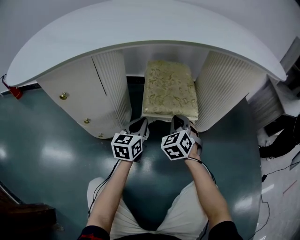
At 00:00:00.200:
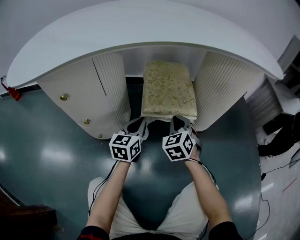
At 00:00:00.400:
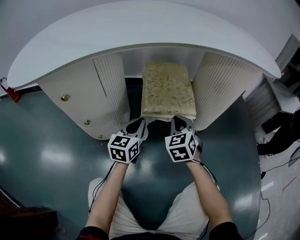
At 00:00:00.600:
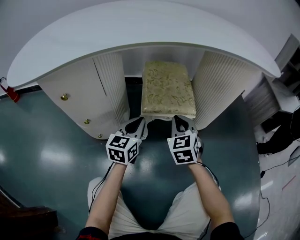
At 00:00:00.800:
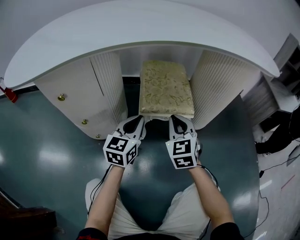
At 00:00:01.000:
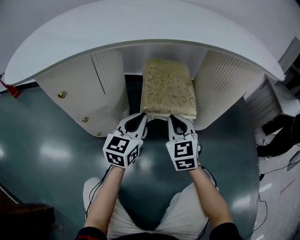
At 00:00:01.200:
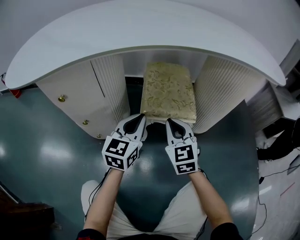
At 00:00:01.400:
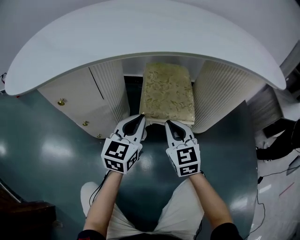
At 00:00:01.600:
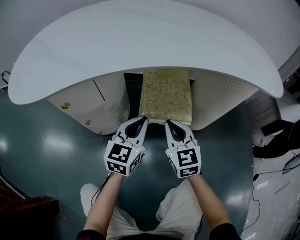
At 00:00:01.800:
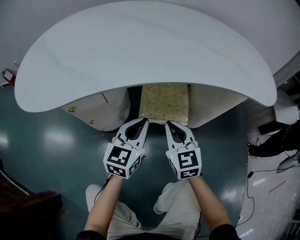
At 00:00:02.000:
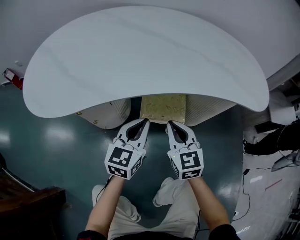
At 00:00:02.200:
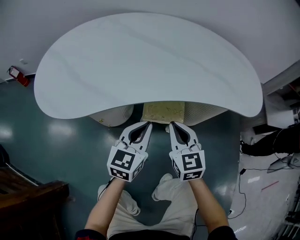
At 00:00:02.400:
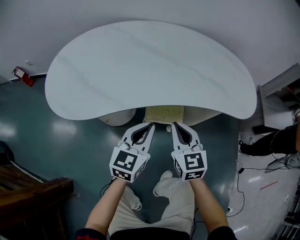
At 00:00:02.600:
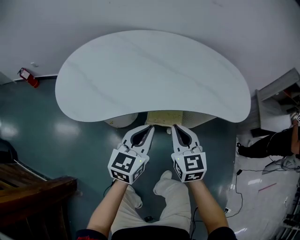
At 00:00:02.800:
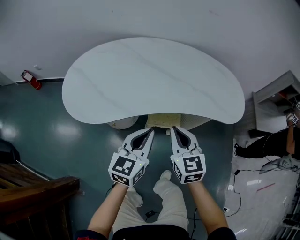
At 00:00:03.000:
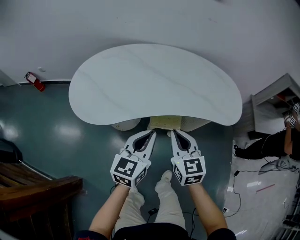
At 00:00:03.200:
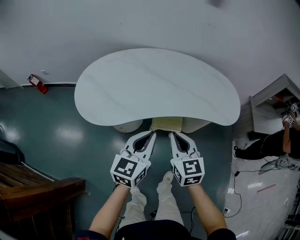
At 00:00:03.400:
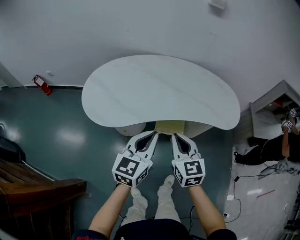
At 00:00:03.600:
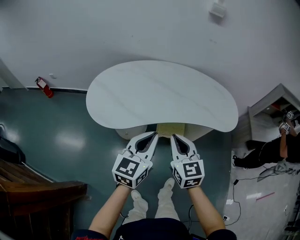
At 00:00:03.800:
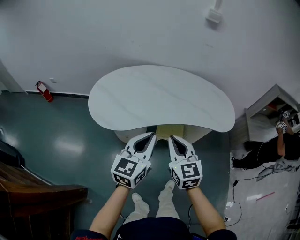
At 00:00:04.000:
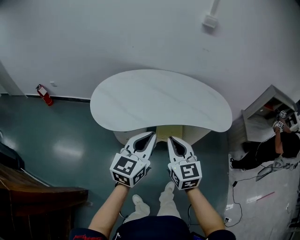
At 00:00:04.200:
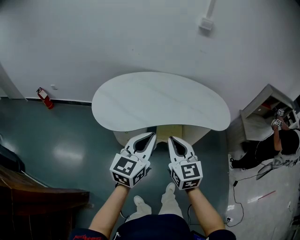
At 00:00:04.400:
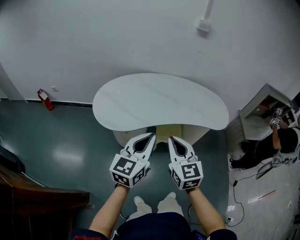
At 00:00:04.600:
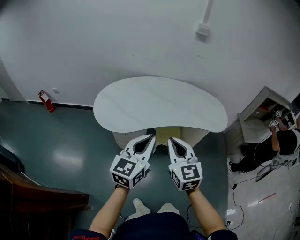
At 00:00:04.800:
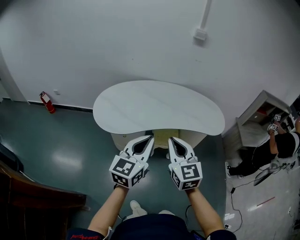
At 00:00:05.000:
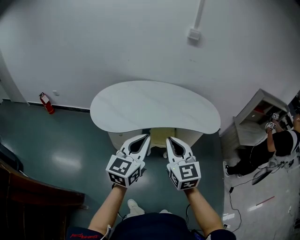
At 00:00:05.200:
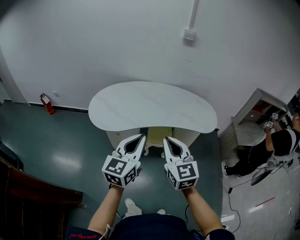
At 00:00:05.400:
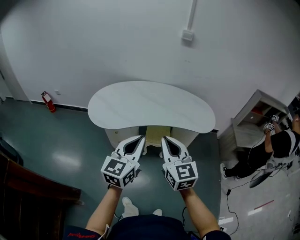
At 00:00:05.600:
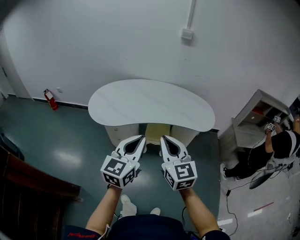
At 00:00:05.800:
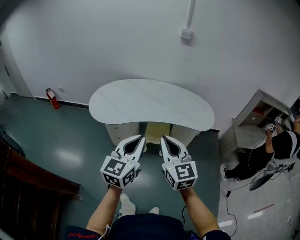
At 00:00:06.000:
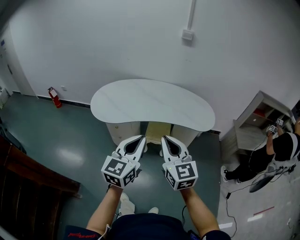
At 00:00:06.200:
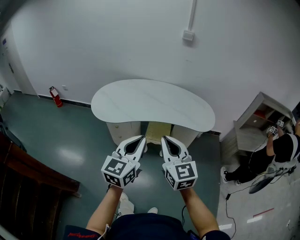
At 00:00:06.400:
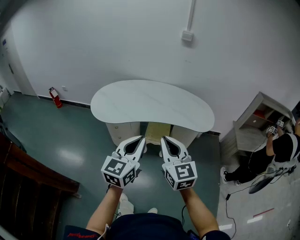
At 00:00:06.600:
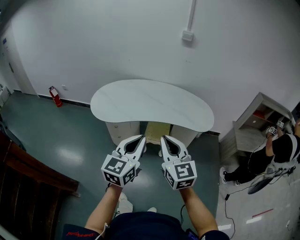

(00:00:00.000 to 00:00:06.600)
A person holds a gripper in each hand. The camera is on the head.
00:00:00.000 - 00:00:01.600: The grippers both shift upward by approximately 15 cm. The right gripper turns by some 40 degrees.
00:00:01.600 - 00:00:03.200: The two grippers go about 40 cm upward.
00:00:03.200 - 00:00:05.000: The left gripper shifts approximately 20 cm backward and upward. Meanwhile the right gripper travels upward and backward by roughly 25 cm.
00:00:05.000 - 00:00:06.600: Both grippers move to the right and backward, about 15 cm.

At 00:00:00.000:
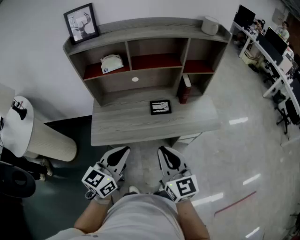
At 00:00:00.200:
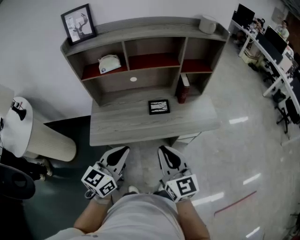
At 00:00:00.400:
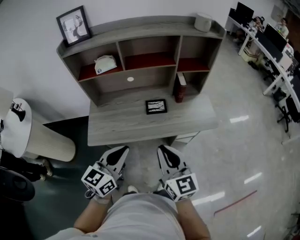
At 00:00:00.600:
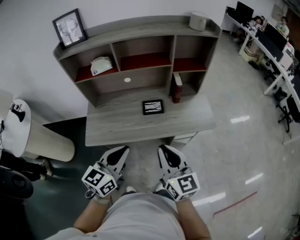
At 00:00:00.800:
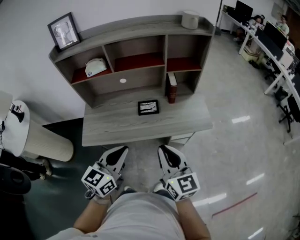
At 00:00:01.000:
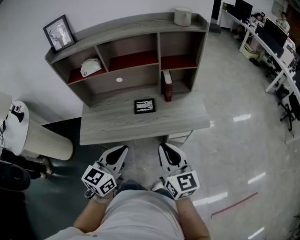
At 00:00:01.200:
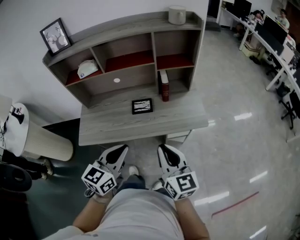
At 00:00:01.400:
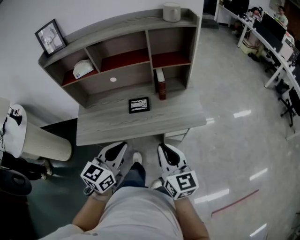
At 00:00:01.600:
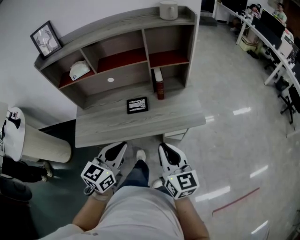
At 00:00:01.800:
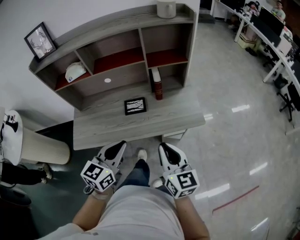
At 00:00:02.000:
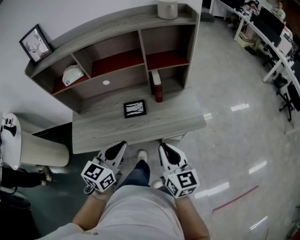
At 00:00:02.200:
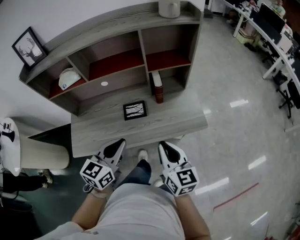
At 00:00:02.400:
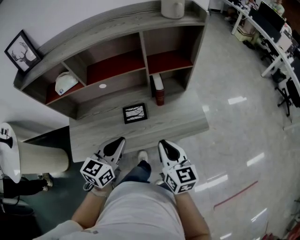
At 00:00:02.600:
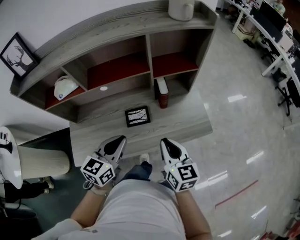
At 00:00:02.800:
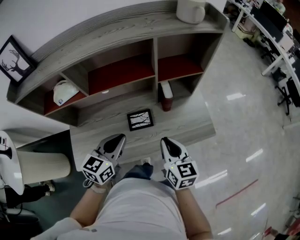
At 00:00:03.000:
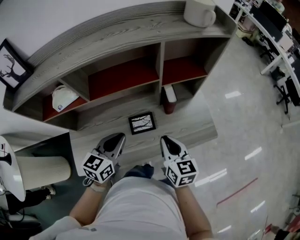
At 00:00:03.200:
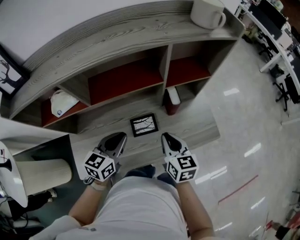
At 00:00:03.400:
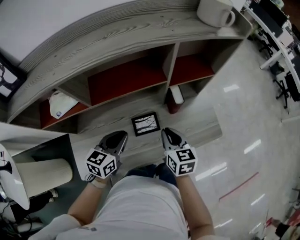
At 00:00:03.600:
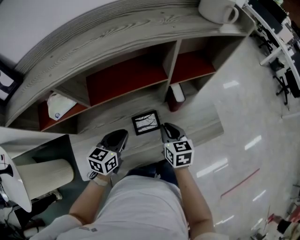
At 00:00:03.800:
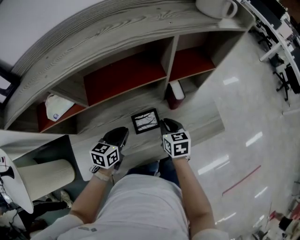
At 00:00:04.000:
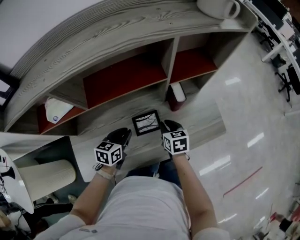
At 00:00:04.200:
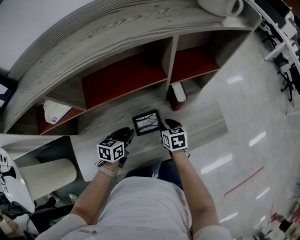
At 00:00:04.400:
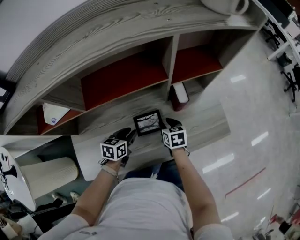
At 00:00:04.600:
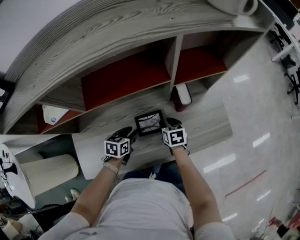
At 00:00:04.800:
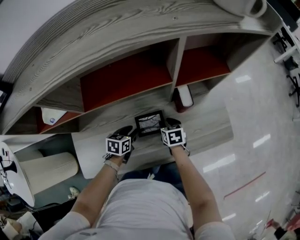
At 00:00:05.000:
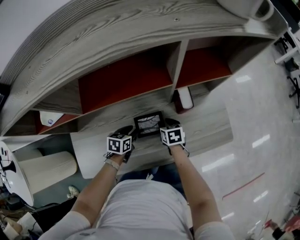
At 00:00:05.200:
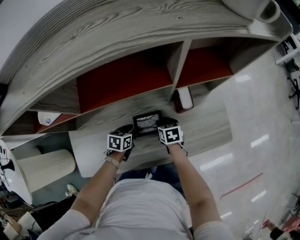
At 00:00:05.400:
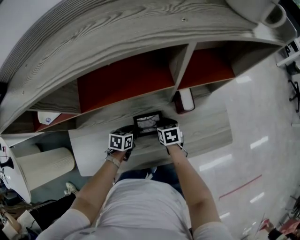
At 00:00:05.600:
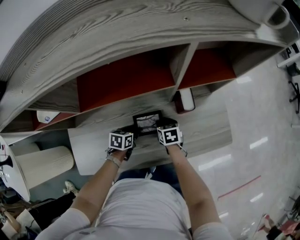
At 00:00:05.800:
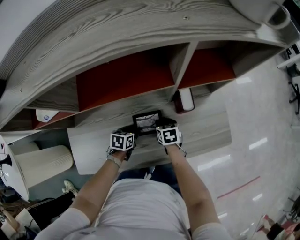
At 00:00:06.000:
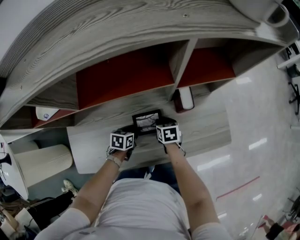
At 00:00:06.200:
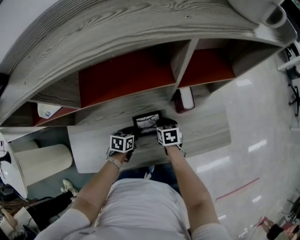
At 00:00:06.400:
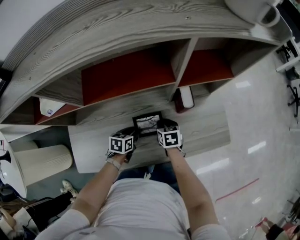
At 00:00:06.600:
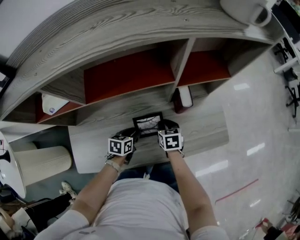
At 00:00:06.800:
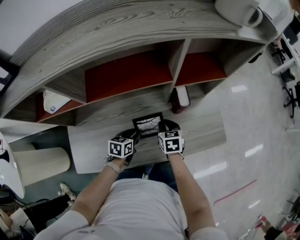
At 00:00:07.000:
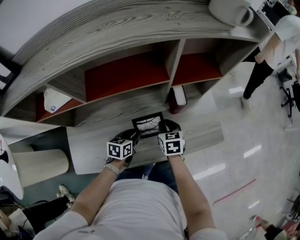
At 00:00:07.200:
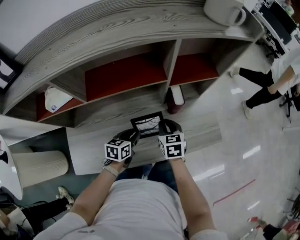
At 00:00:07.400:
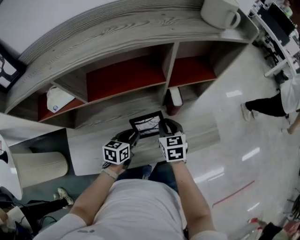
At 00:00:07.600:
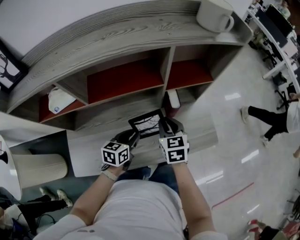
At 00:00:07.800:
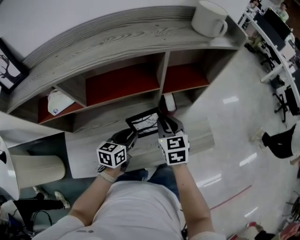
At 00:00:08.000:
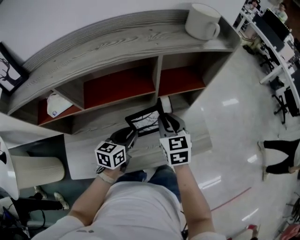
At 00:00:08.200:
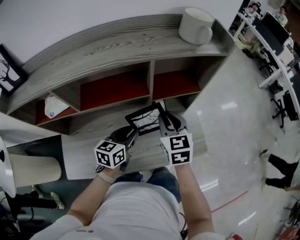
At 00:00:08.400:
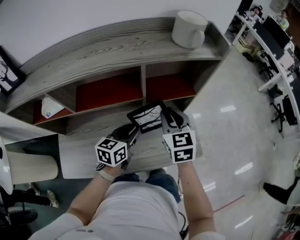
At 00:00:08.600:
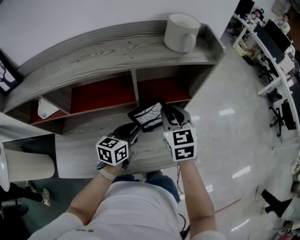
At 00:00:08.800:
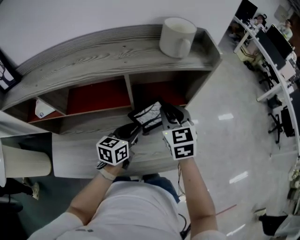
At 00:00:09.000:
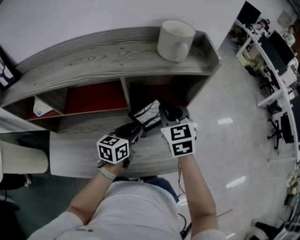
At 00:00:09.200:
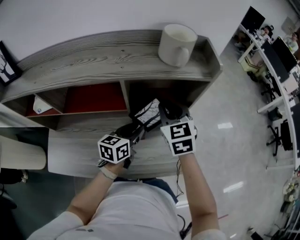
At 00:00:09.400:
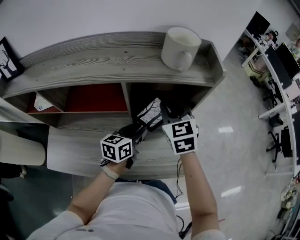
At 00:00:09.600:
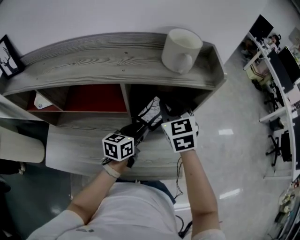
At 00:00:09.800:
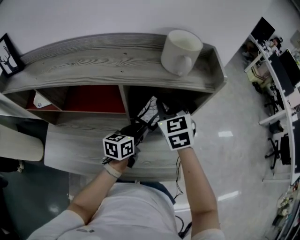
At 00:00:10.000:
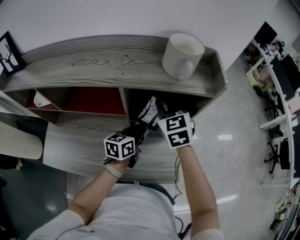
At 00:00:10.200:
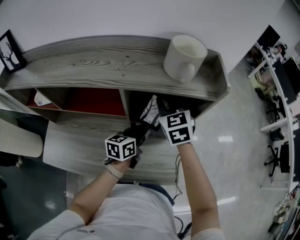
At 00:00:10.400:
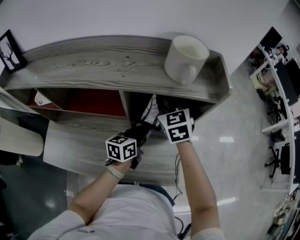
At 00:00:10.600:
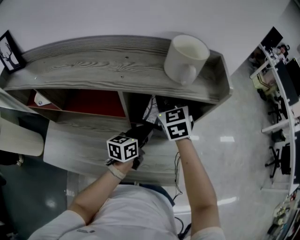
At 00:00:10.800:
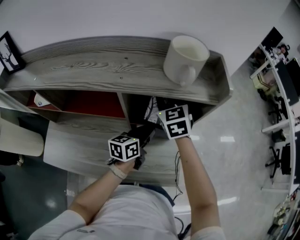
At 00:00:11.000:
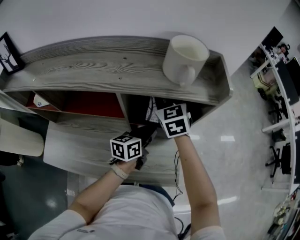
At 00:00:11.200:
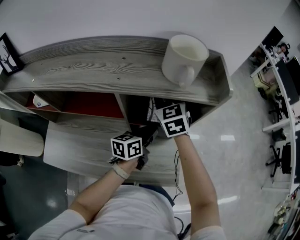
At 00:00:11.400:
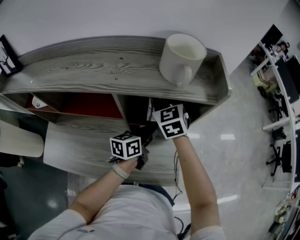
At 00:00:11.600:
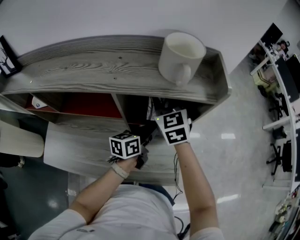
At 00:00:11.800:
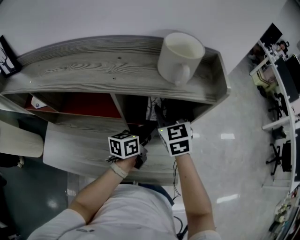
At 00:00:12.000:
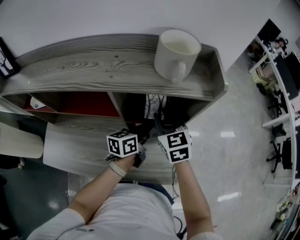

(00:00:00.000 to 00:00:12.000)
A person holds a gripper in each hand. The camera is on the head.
00:00:00.000 - 00:00:01.600: Both grippers travel together to the right, approximately 20 cm.
00:00:01.600 - 00:00:03.000: The two grippers go some 25 cm forward and to the left.
00:00:03.000 - 00:00:04.400: The left gripper travels downward by approximately 20 cm, changes its angle by some 30 degrees, and opens. Meanwhile the right gripper heads downward and forward, covering roughly 25 cm, turns by about 30 degrees, and opens its fingers.
00:00:04.400 - 00:00:06.000: The right gripper shifts some 5 cm downward; the left gripper goes approximately 10 cm downward.
00:00:06.000 - 00:00:07.600: Both grippers move upward, approximately 20 cm. The left gripper changes its angle by approximately 20 degrees. The right gripper rotates roughly 30 degrees.
00:00:07.600 - 00:00:09.000: The right gripper heads upward, forward and to the right, covering approximately 25 cm, and changes its angle by approximately 20 degrees. The left gripper is displaced to the right, forward and upward by approximately 25 cm.
00:00:09.000 - 00:00:10.400: The left gripper moves forward, about 5 cm, while the right gripper is displaced forward by some 10 cm.
00:00:10.400 - 00:00:12.000: The right gripper heads backward, covering about 5 cm.

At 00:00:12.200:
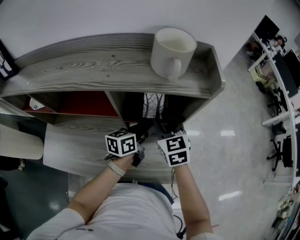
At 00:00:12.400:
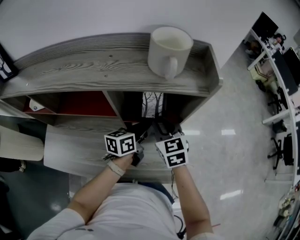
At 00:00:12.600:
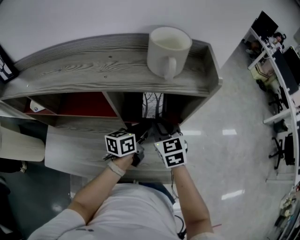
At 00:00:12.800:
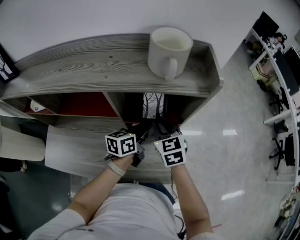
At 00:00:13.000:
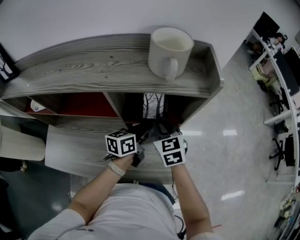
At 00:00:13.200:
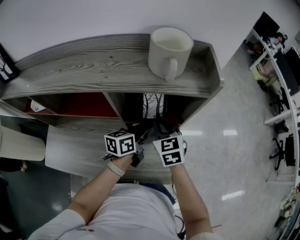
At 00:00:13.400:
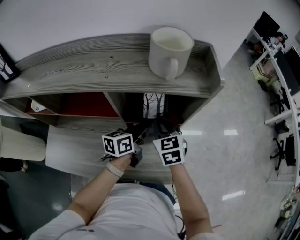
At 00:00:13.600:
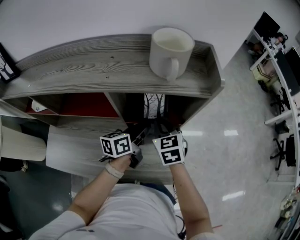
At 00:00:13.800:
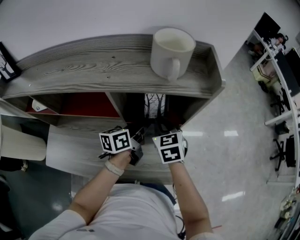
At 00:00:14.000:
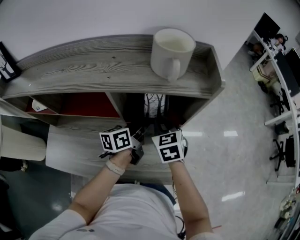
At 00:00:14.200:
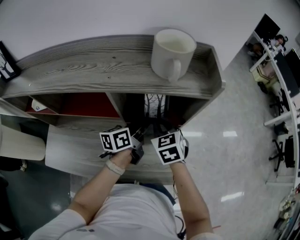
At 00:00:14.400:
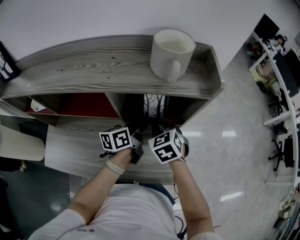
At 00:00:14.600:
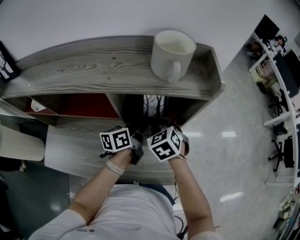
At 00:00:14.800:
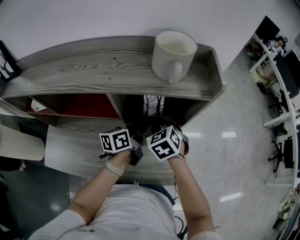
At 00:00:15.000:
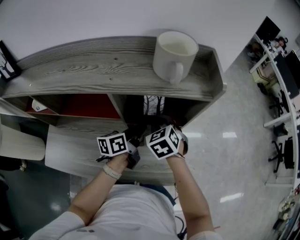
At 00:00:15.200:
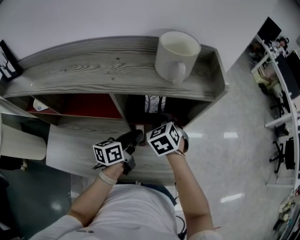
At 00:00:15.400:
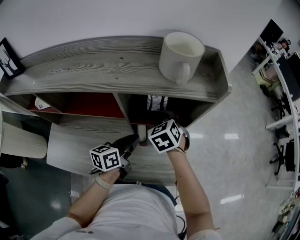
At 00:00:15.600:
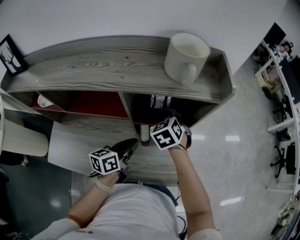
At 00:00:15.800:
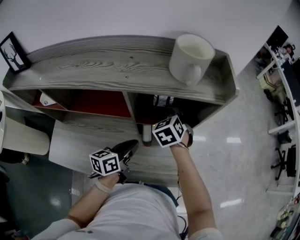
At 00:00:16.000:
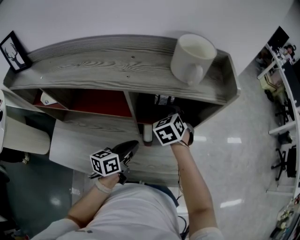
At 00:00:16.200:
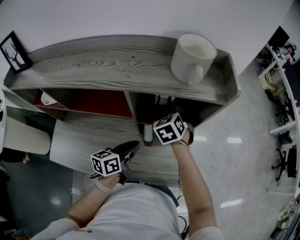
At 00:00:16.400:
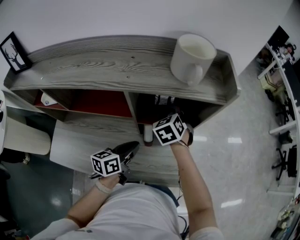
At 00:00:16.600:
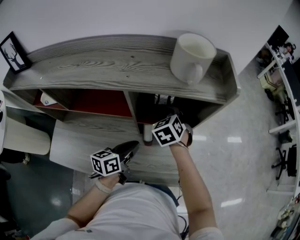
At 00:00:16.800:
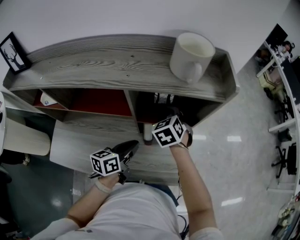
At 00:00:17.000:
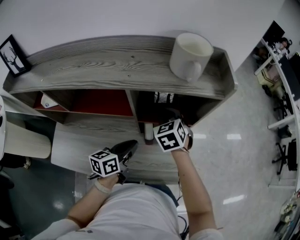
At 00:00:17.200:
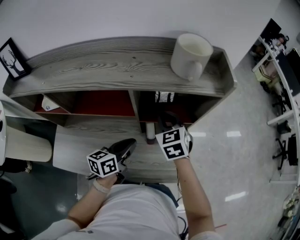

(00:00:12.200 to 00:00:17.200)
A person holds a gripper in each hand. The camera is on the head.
00:00:12.200 - 00:00:13.800: The grippers make only small movements.
00:00:13.800 - 00:00:15.600: The right gripper turns by roughly 20 degrees. Meanwhile the left gripper moves backward and to the left, some 10 cm.
00:00:15.600 - 00:00:17.200: The right gripper shifts by roughly 5 cm.
